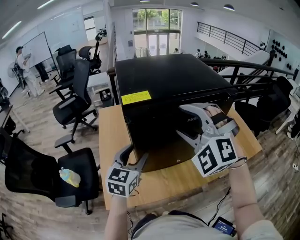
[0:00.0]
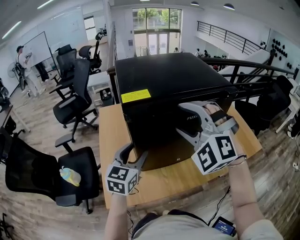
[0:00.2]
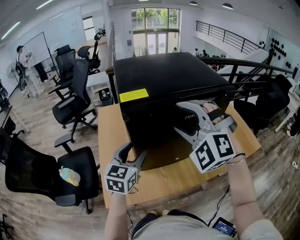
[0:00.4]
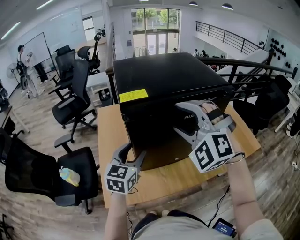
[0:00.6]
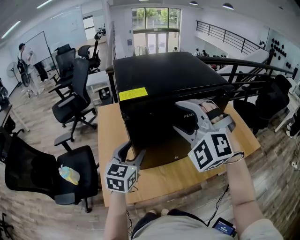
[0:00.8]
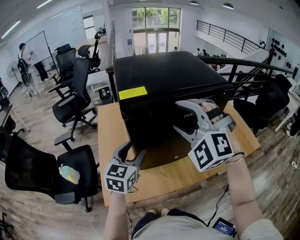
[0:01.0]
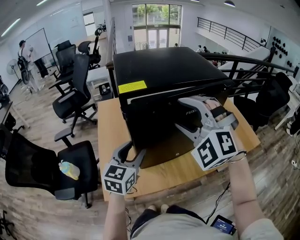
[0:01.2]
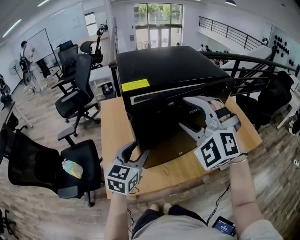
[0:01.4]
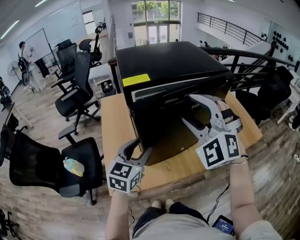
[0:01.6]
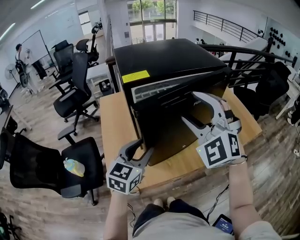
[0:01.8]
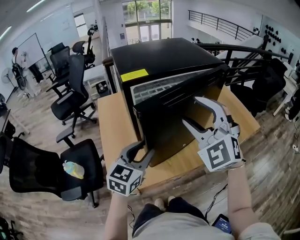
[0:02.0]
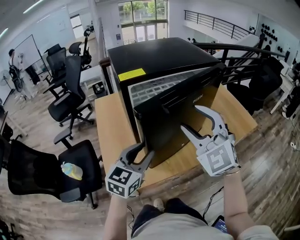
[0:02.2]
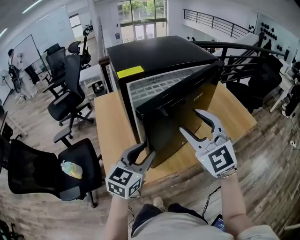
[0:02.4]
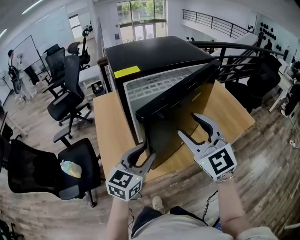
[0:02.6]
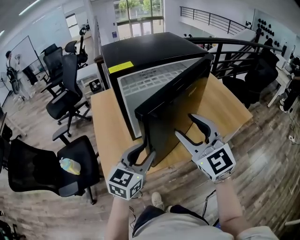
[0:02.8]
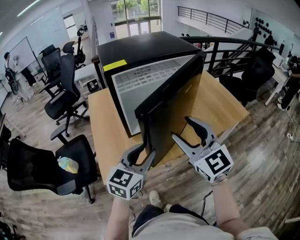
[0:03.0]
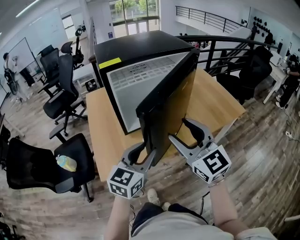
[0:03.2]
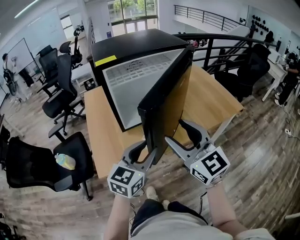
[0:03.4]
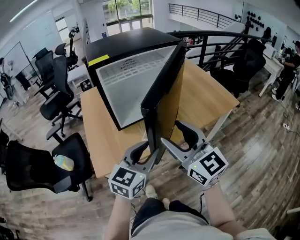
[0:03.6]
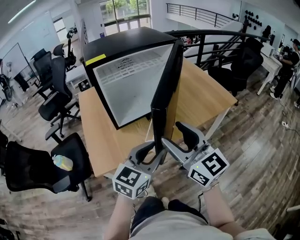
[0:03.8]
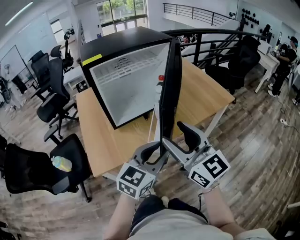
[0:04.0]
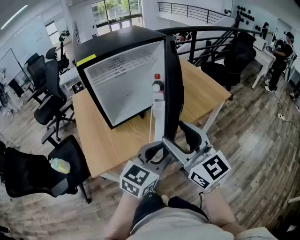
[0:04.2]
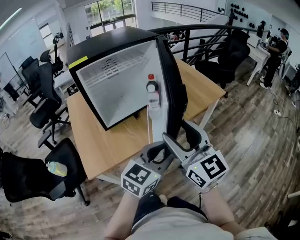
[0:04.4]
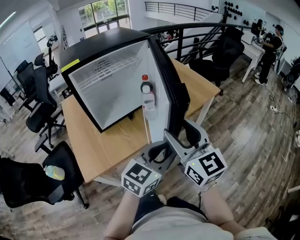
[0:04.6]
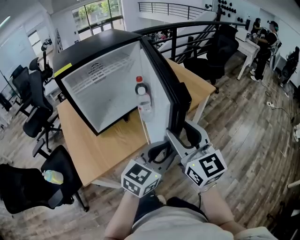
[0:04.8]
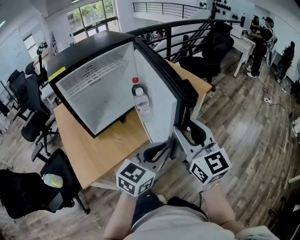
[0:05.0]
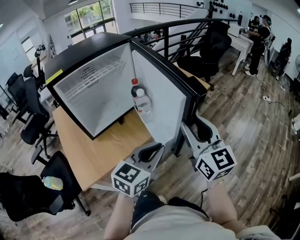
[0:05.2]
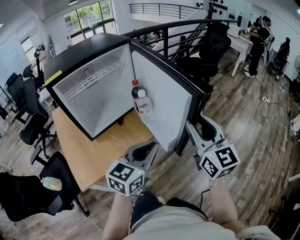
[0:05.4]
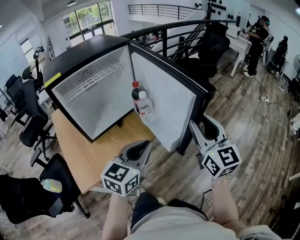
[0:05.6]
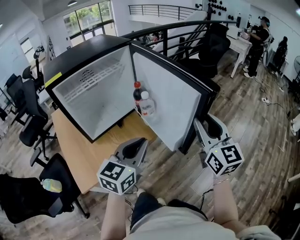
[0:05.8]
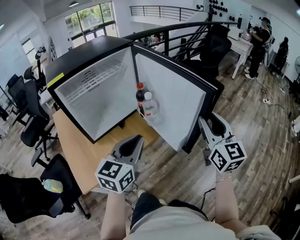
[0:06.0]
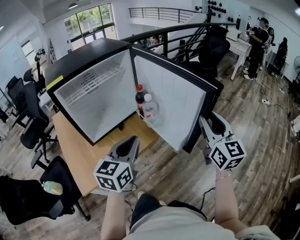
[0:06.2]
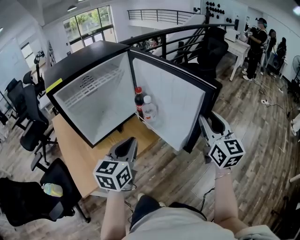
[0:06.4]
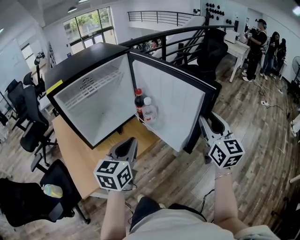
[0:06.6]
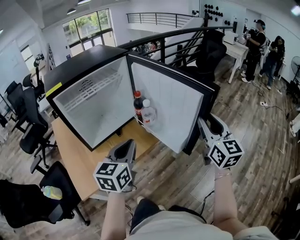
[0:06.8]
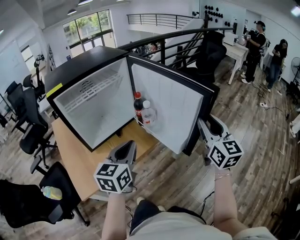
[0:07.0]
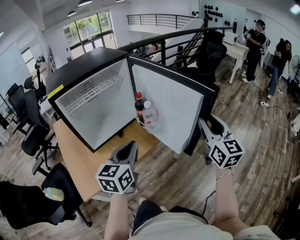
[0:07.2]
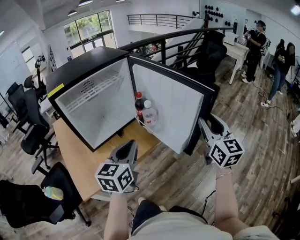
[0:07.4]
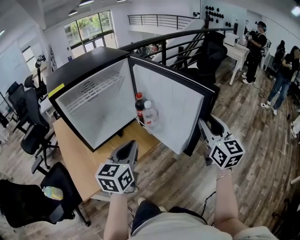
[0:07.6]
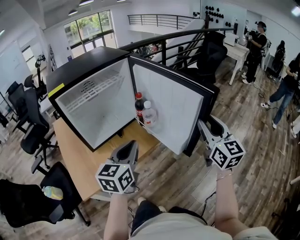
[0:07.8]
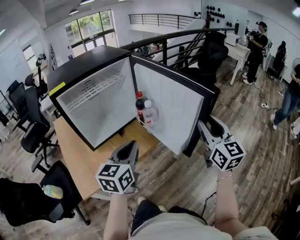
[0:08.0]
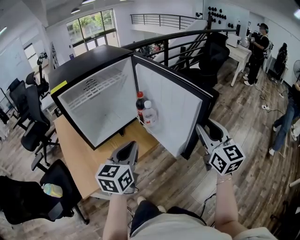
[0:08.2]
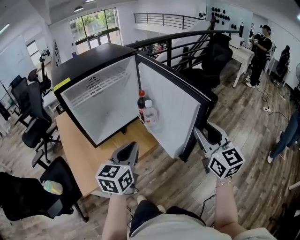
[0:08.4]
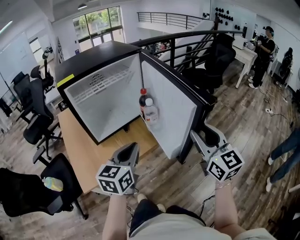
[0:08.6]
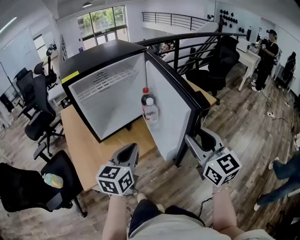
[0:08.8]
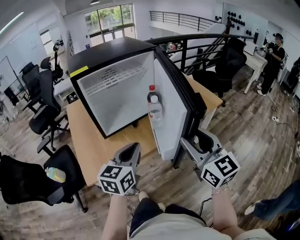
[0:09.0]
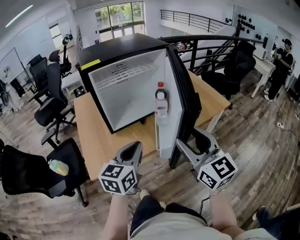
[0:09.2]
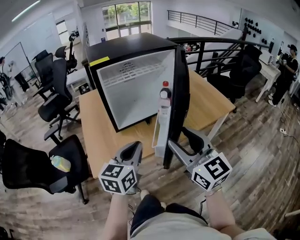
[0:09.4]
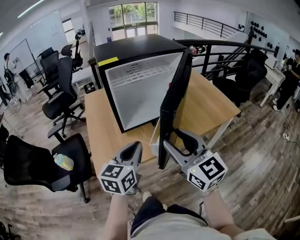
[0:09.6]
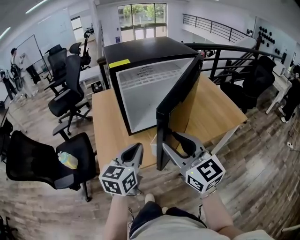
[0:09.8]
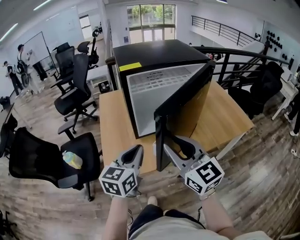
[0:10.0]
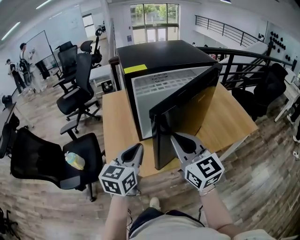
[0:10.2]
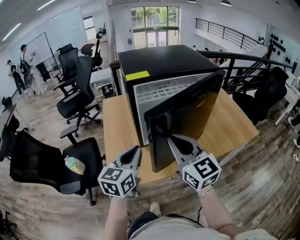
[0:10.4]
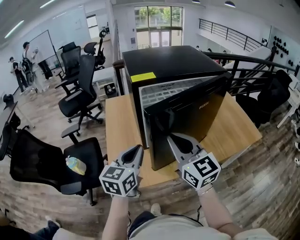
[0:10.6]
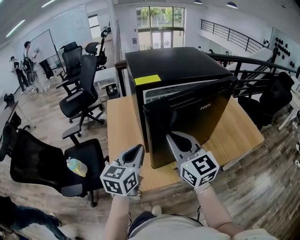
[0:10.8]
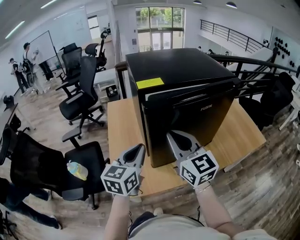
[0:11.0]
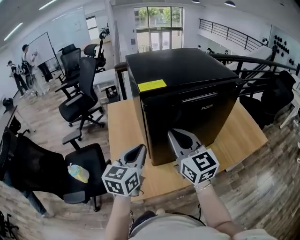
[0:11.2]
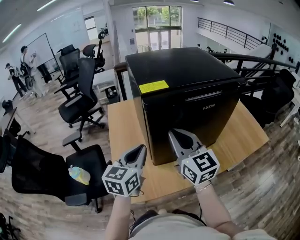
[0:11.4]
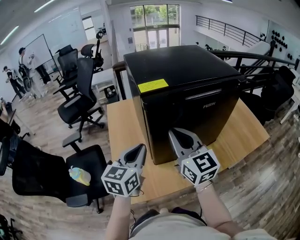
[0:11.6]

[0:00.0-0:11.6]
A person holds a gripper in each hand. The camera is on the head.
0:00.0 to 0:01.4: The left gripper heads backward, covering approximately 5 cm.
0:01.4 to 0:02.8: The right gripper travels backward and downward by about 15 cm, and rolls clockwise, seen from behind, by about 50 degrees; the left gripper travels backward and to the right by some 10 cm.
0:02.8 to 0:04.4: Both grippers move to the right and backward, roughly 20 cm. The right gripper rotates roughly 20 degrees, while the left gripper swivels approximately 20 degrees.
0:04.4 to 0:05.8: The left gripper moves approximately 5 cm, and closes its fingers. Meanwhile the right gripper goes about 20 cm to the right and forward, and rotates some 20 degrees.
0:05.8 to 0:07.2: The left gripper changes place by some 5 cm.
0:07.2 to 0:08.8: The right gripper moves to the left and backward, roughly 10 cm.
0:08.8 to 0:10.2: The left gripper travels to the left by about 20 cm, while the right gripper shifts some 30 cm to the left and forward, swivels about 20 degrees, and closes up.
0:10.2 to 0:11.6: Both grippers travel together forward and to the left, about 15 cm.

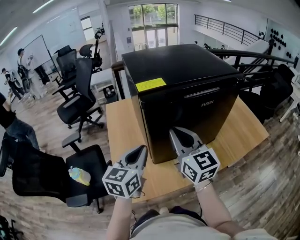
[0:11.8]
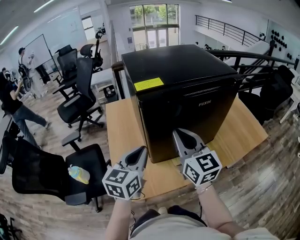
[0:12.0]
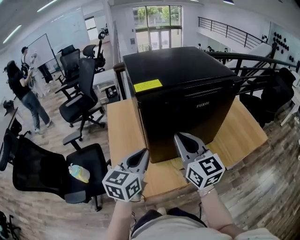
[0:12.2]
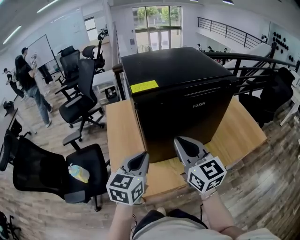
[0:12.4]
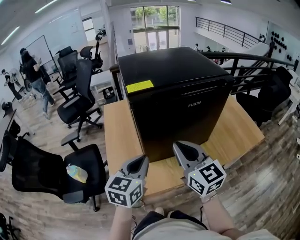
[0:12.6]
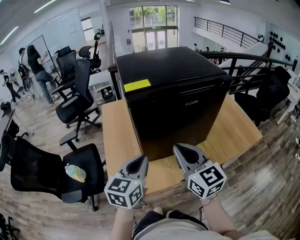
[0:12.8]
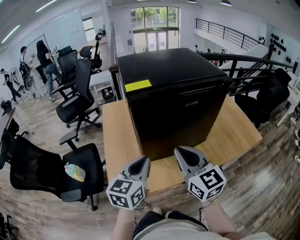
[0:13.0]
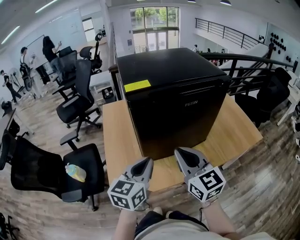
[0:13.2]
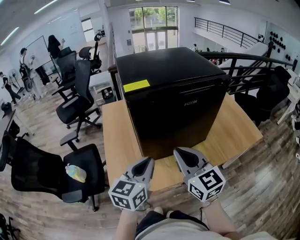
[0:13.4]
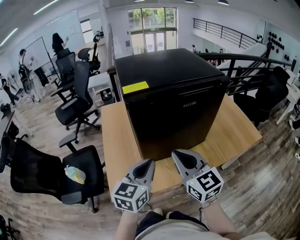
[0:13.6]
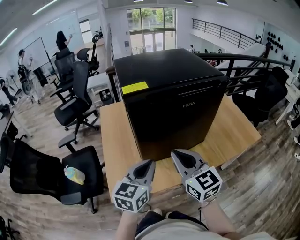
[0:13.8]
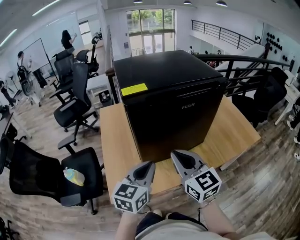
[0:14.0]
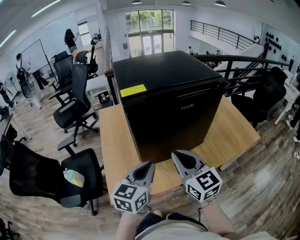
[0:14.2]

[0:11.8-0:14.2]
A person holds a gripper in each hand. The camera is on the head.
0:11.8 to 0:13.0: Both grippers travel together backward and to the right, about 10 cm.
0:13.0 to 0:14.2: The grippers make only small movements.

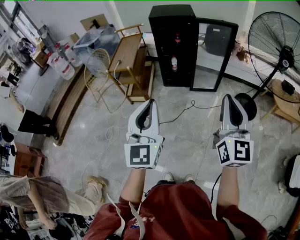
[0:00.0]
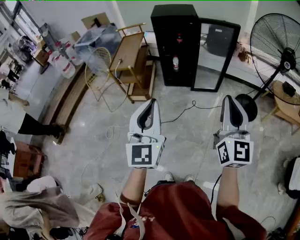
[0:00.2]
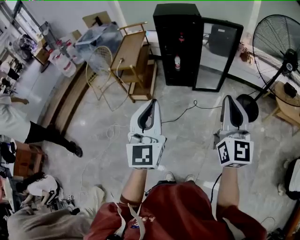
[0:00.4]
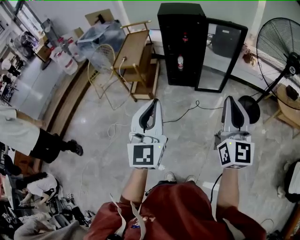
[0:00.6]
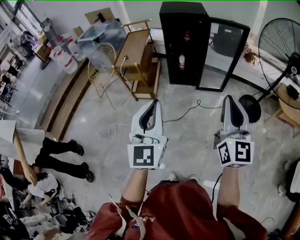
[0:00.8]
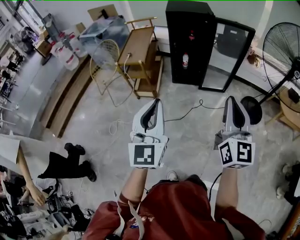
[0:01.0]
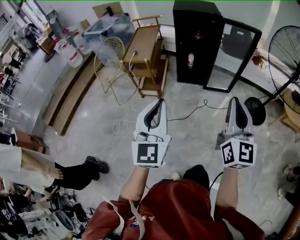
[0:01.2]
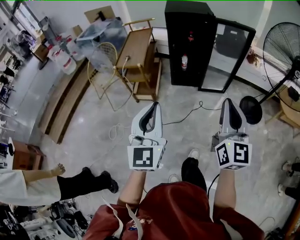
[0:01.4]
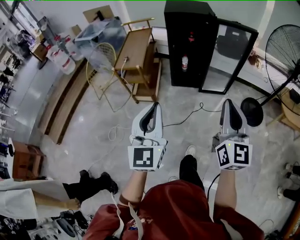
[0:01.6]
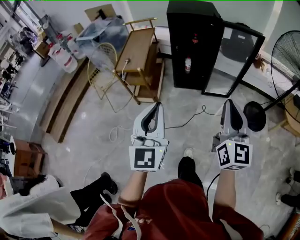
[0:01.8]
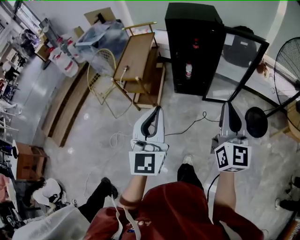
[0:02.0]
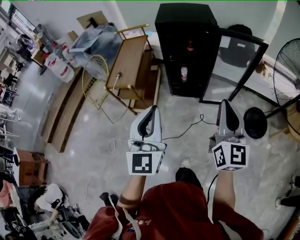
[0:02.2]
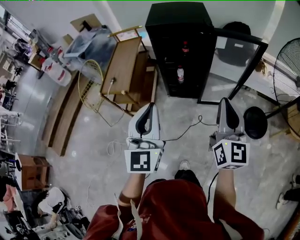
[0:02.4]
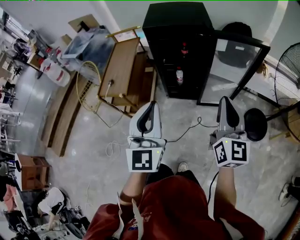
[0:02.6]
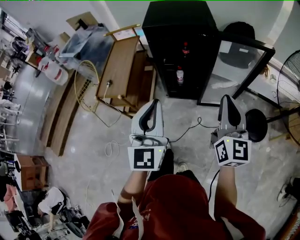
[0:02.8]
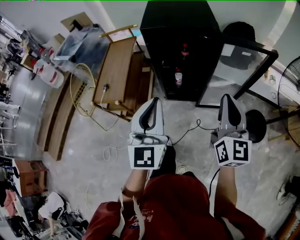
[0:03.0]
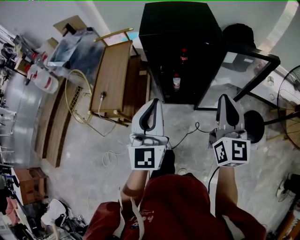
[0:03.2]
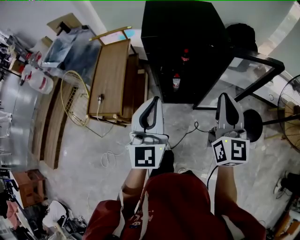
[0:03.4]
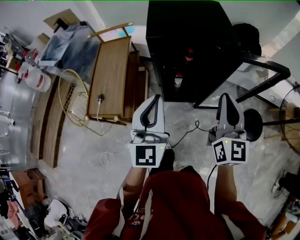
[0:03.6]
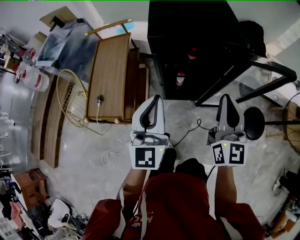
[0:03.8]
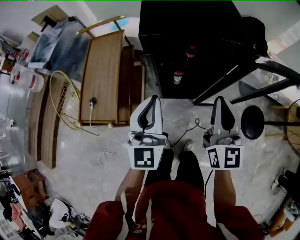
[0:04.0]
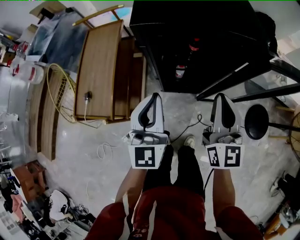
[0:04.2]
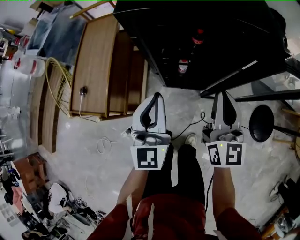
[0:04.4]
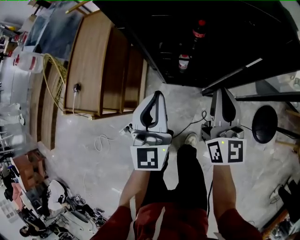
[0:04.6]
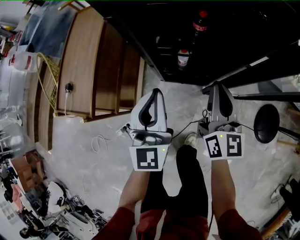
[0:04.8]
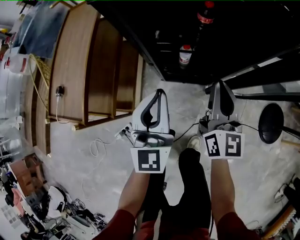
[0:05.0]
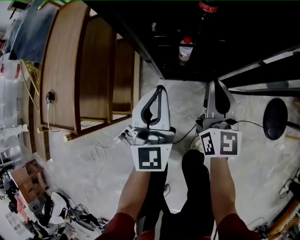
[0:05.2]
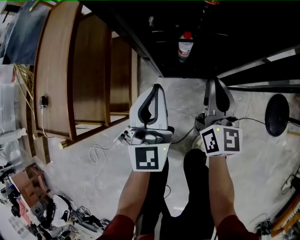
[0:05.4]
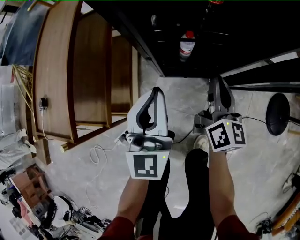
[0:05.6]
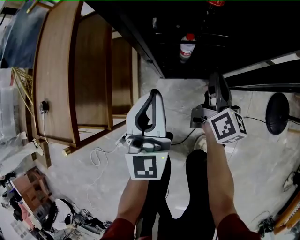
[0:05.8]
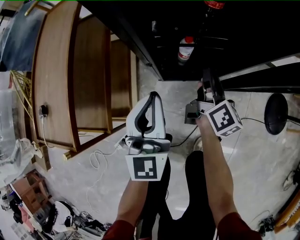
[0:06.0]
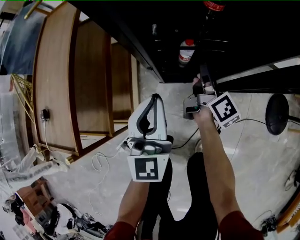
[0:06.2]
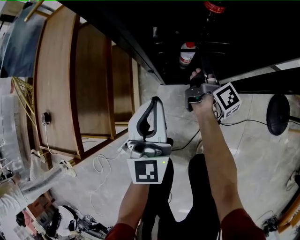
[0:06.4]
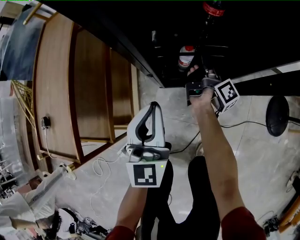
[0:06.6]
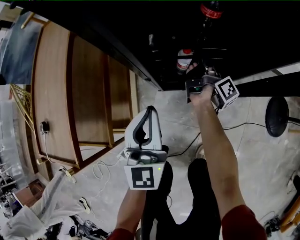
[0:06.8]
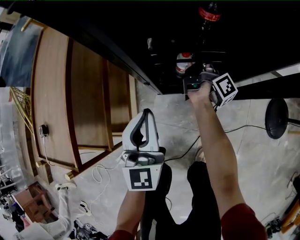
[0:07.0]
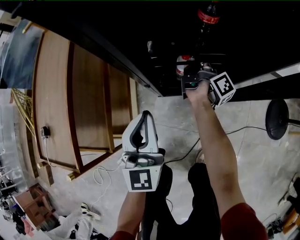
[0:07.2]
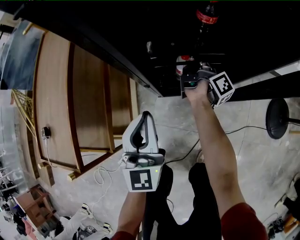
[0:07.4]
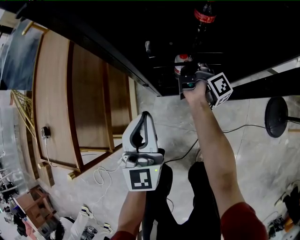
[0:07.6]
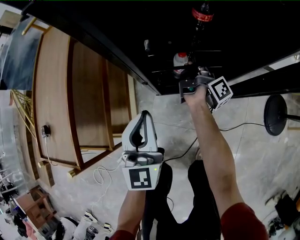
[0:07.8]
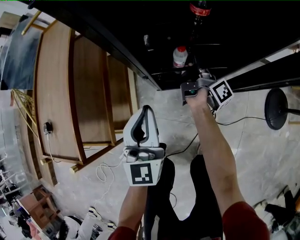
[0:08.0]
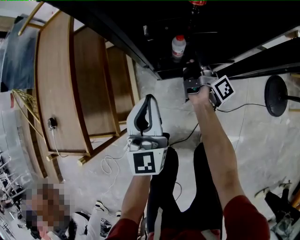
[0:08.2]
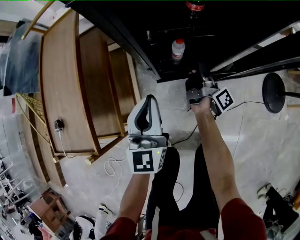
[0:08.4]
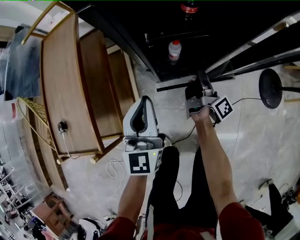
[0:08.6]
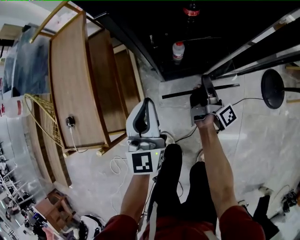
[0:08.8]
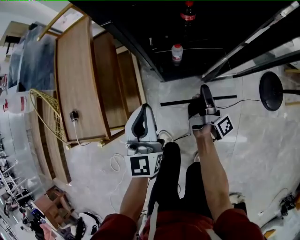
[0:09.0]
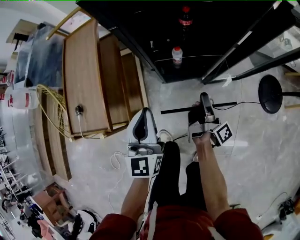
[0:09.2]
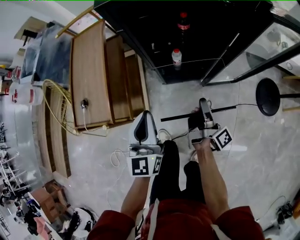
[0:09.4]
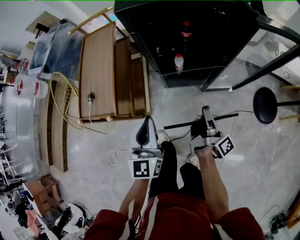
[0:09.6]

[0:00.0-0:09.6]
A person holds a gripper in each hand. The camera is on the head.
0:00.0 to 0:01.6: The two grippers go roughly 15 cm forward and to the left.
0:01.6 to 0:03.2: The pair of grippers is taken forward, about 40 cm.
0:03.2 to 0:04.8: The two grippers go some 35 cm downward and forward.
0:04.8 to 0:06.4: The right gripper travels downward and forward by about 30 cm, rolls clockwise, seen from behind, by roughly 60 degrees, and opens up. The left gripper heads downward, covering approximately 15 cm.
0:06.4 to 0:08.0: The right gripper moves some 10 cm forward and comes back, and closes its fingers.
0:08.0 to 0:09.6: The right gripper shifts some 40 cm backward and upward. The left gripper moves upward and backward, about 25 cm.
